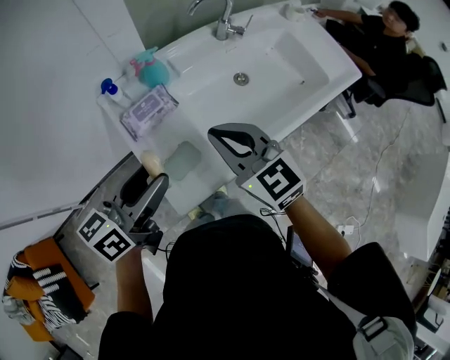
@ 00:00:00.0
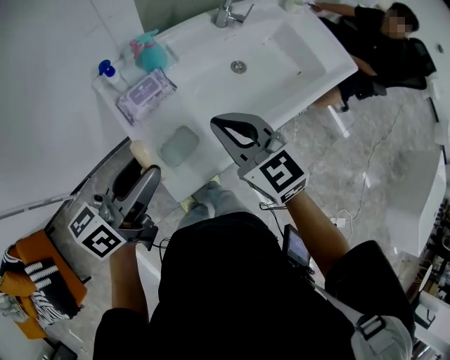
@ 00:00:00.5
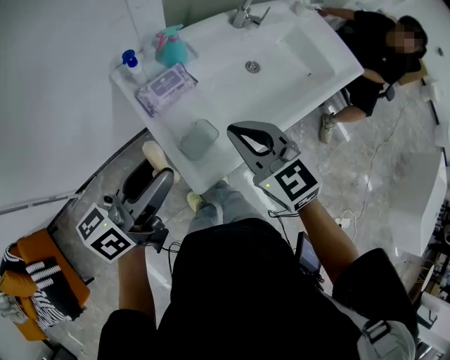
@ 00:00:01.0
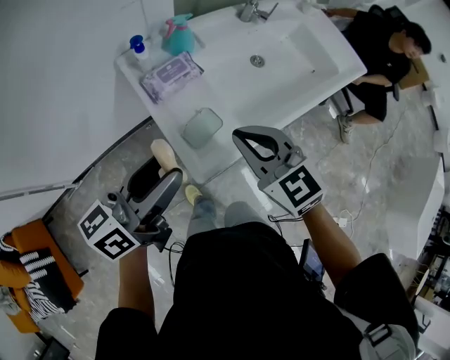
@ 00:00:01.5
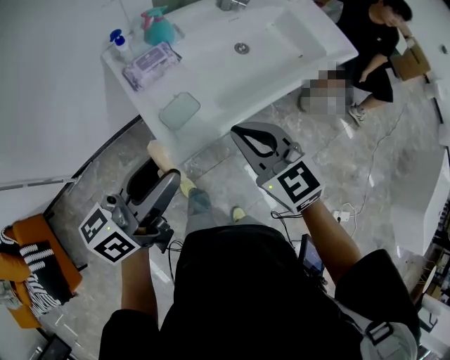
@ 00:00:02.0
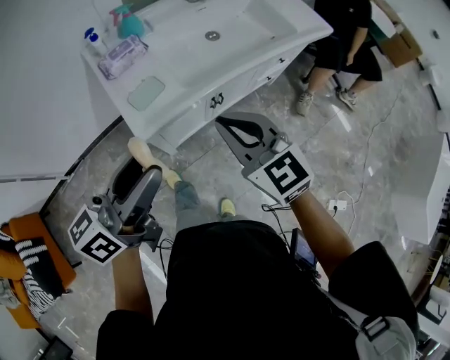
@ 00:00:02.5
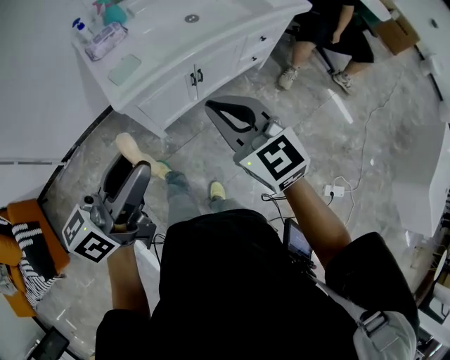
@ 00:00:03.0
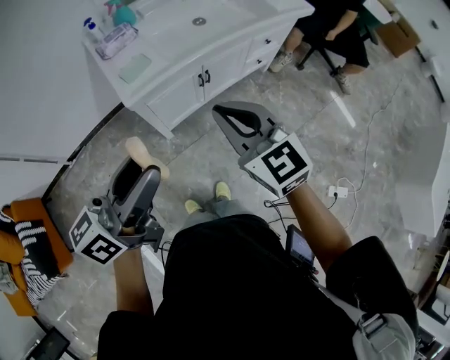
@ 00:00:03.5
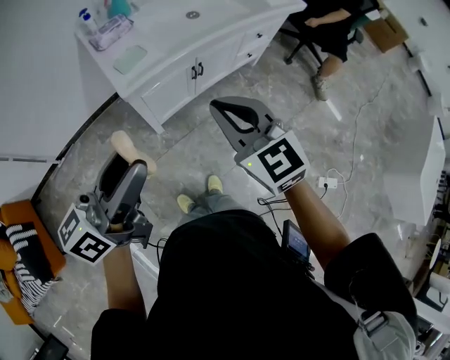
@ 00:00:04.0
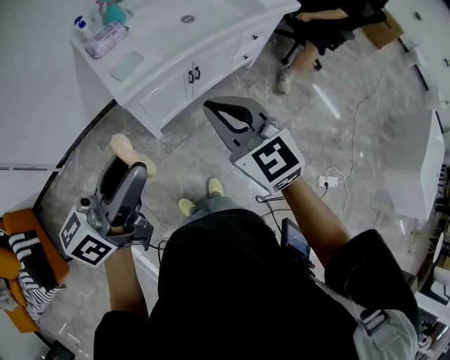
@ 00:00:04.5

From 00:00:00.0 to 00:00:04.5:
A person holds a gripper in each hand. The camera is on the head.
From 00:00:00.0 to 00:00:02.0: Both grippers travel together backward, approximately 15 cm.
From 00:00:02.0 to 00:00:04.5: Both grippers move backward and to the right, approximately 25 cm.

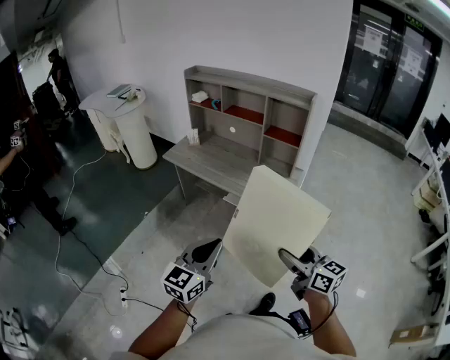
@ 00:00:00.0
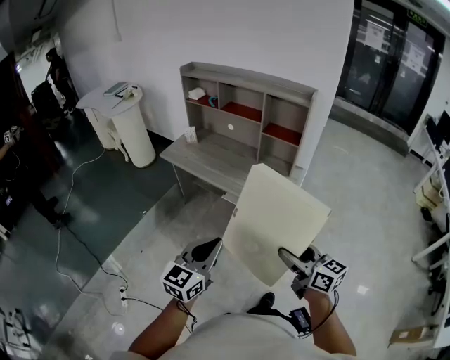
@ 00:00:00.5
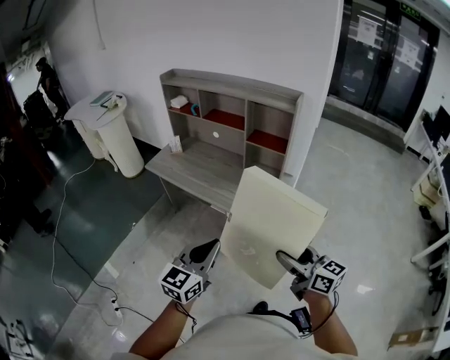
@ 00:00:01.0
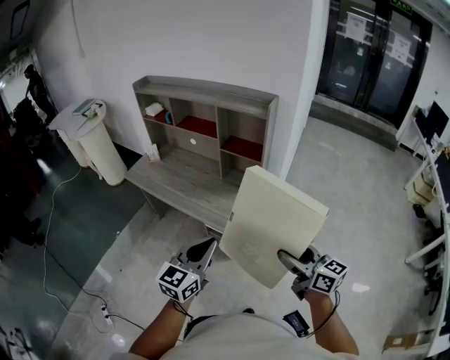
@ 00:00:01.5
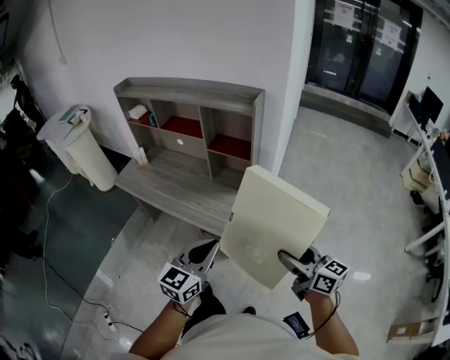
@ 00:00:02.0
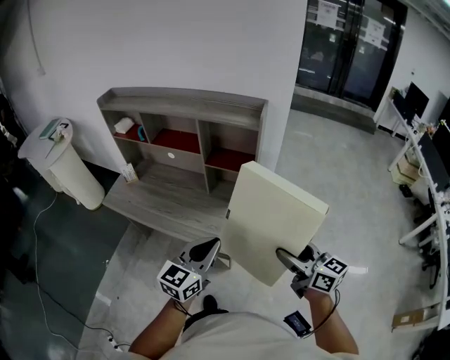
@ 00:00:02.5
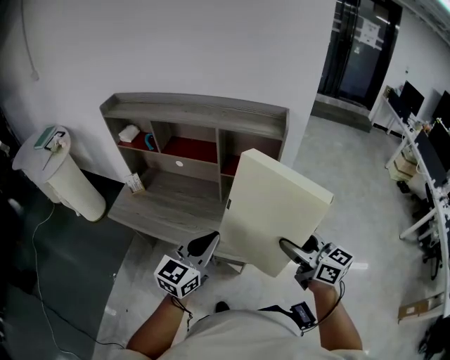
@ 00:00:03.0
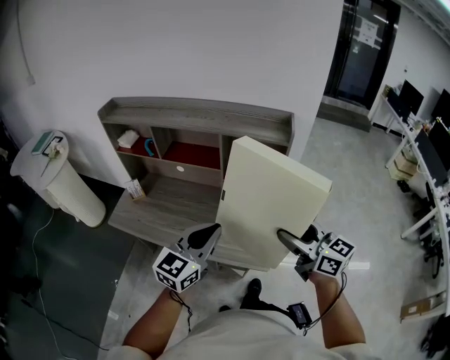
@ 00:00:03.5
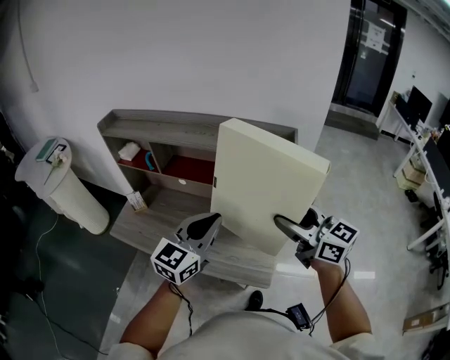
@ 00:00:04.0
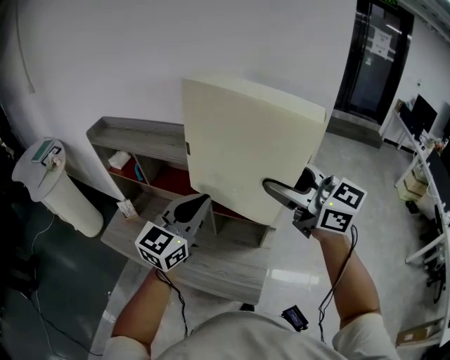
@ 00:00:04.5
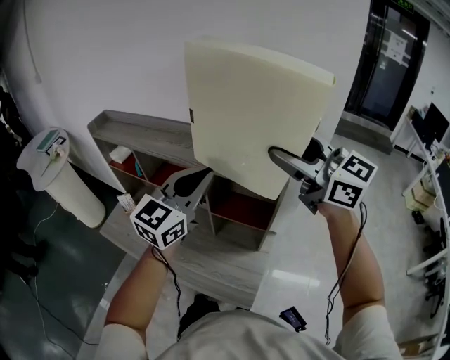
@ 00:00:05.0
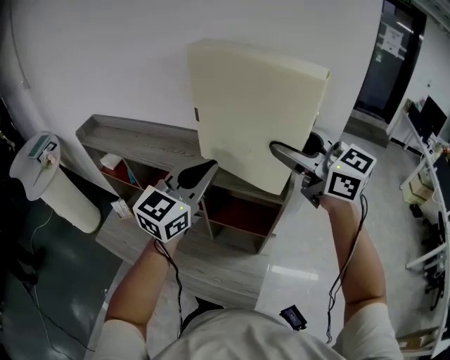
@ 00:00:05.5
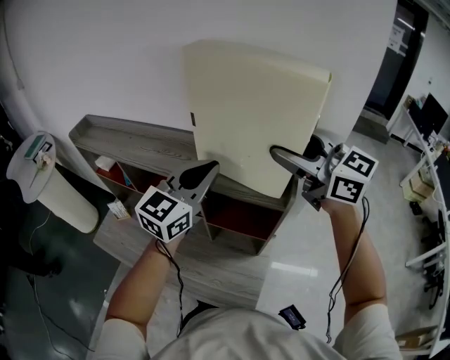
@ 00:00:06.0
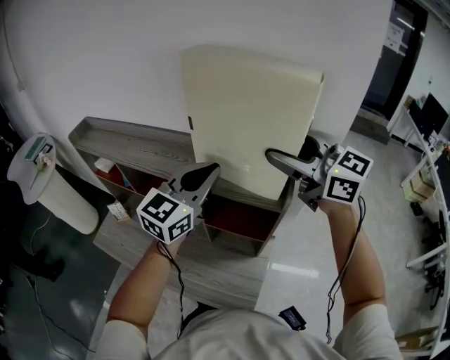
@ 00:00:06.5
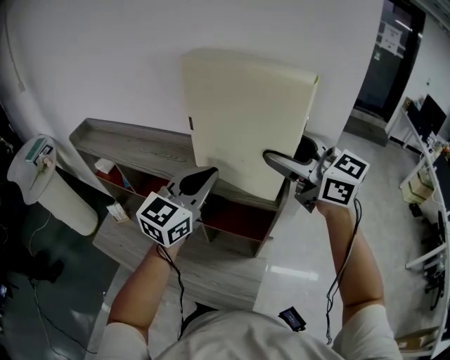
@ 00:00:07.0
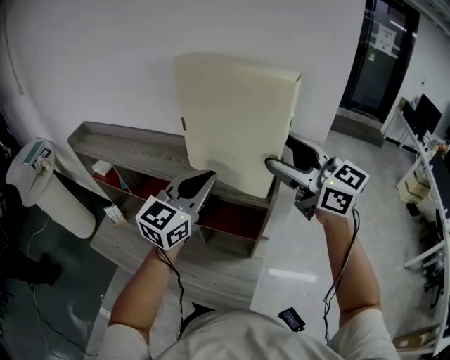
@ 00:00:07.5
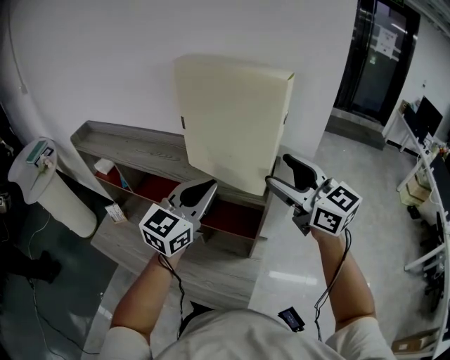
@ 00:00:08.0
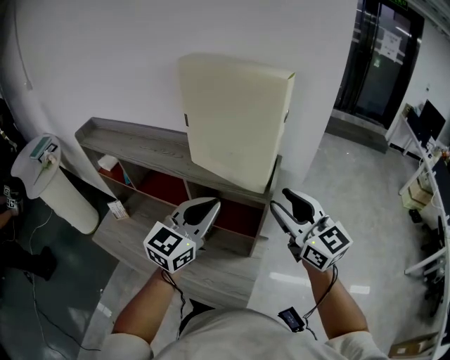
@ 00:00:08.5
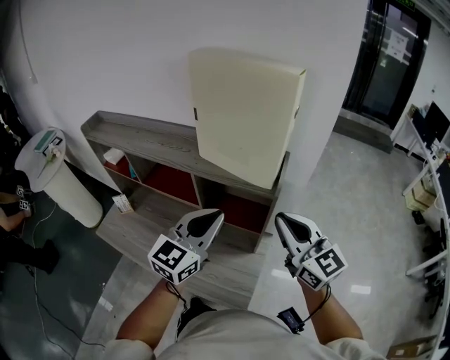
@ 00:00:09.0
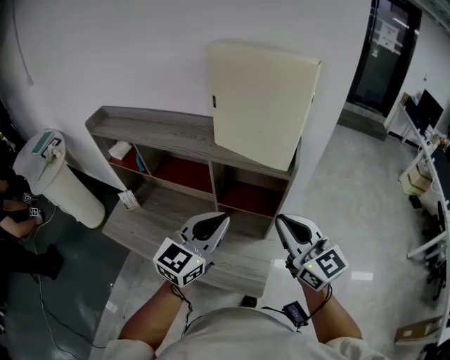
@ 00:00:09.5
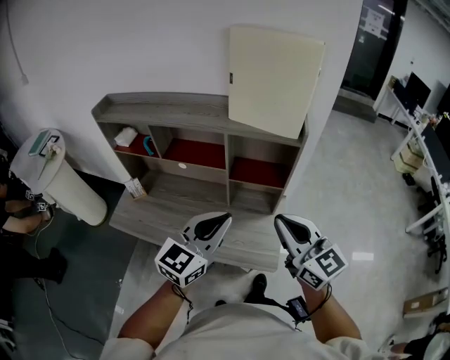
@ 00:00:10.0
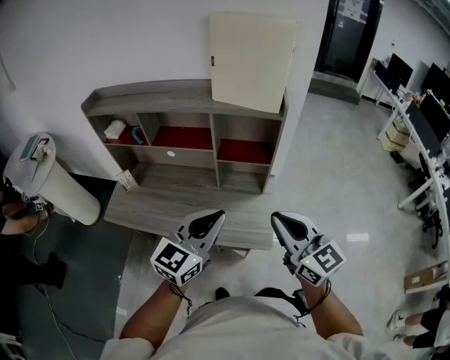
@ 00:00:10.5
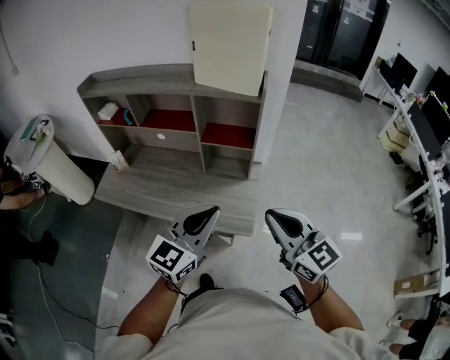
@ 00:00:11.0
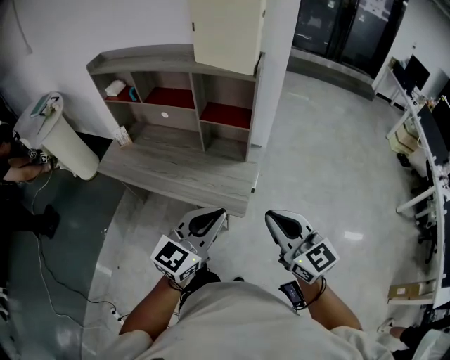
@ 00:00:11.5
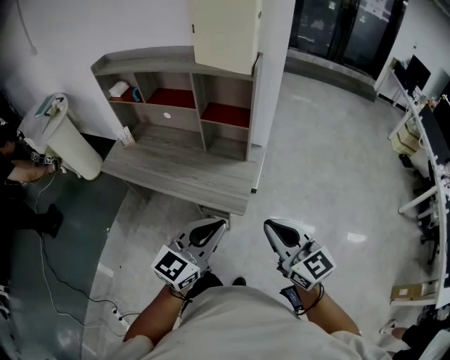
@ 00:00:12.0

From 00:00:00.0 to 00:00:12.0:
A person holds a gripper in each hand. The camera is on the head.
From 00:00:00.0 to 00:00:02.0: The grippers both shift to the right and forward by approximately 35 cm.
From 00:00:02.0 to 00:00:04.0: The right gripper moves forward, to the left and upward, approximately 35 cm. The left gripper shifts about 35 cm forward and to the left.
From 00:00:04.0 to 00:00:06.0: The right gripper shifts some 30 cm forward and upward, while the left gripper travels forward and to the right by approximately 25 cm.
From 00:00:06.0 to 00:00:08.0: The two grippers go some 5 cm backward.
From 00:00:08.0 to 00:00:10.0: The left gripper heads backward and to the left, covering roughly 25 cm. Meanwhile the right gripper shifts roughly 30 cm backward, to the left and downward, and closes.
From 00:00:10.0 to 00:00:12.0: Both grippers travel together backward and to the right, approximately 30 cm.

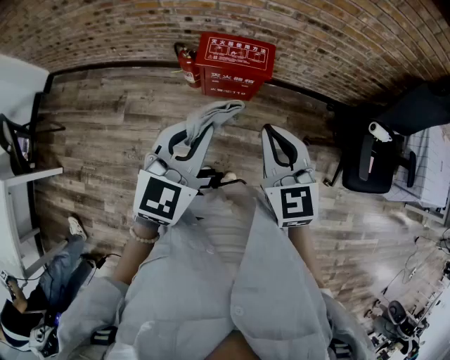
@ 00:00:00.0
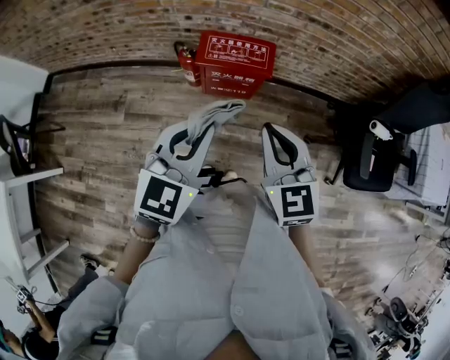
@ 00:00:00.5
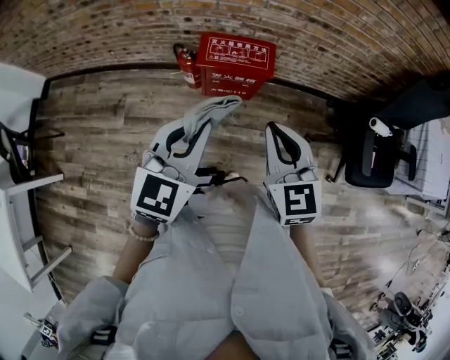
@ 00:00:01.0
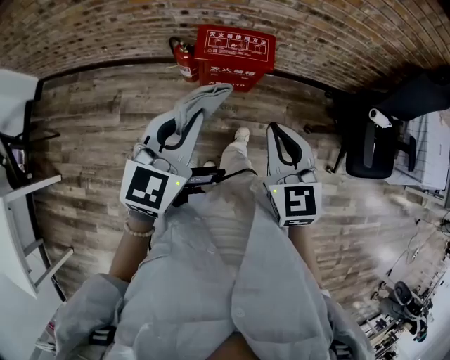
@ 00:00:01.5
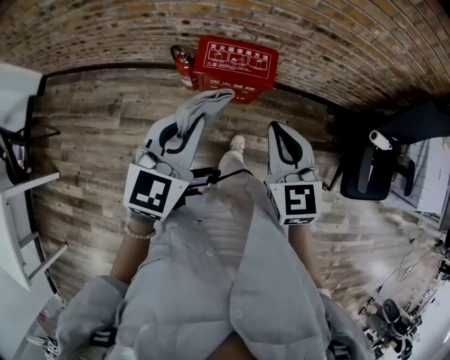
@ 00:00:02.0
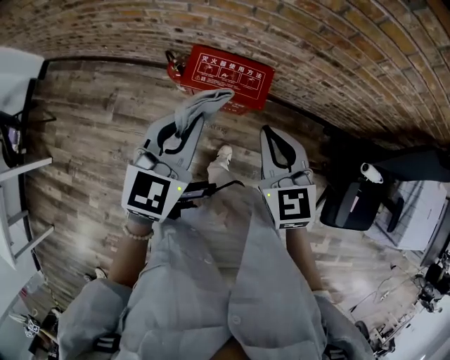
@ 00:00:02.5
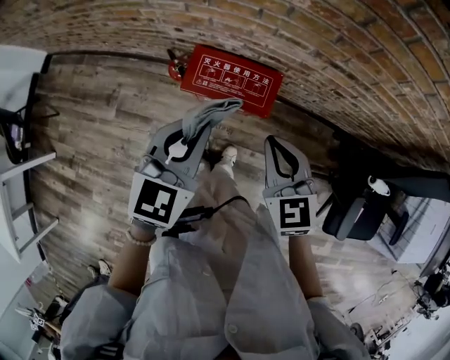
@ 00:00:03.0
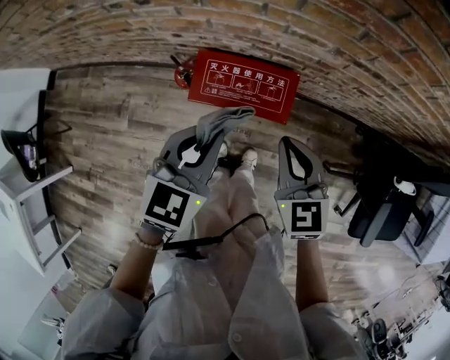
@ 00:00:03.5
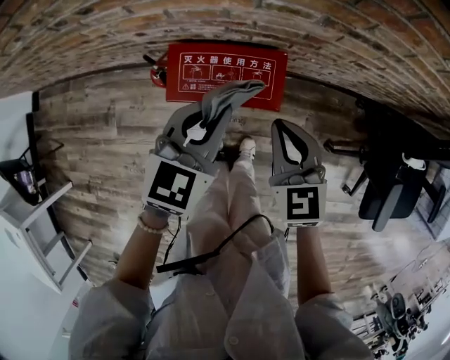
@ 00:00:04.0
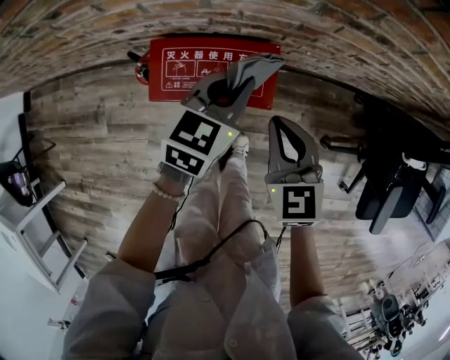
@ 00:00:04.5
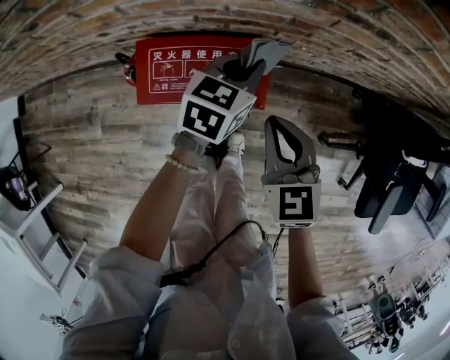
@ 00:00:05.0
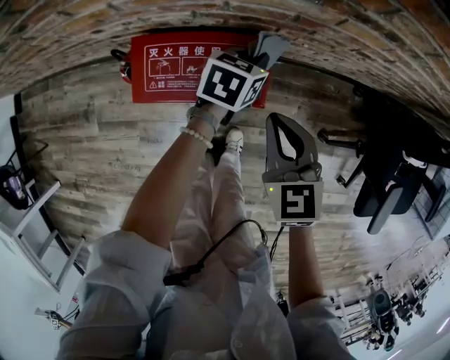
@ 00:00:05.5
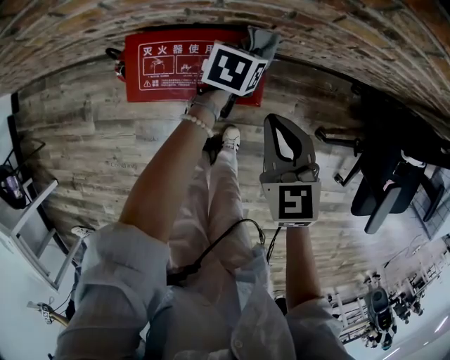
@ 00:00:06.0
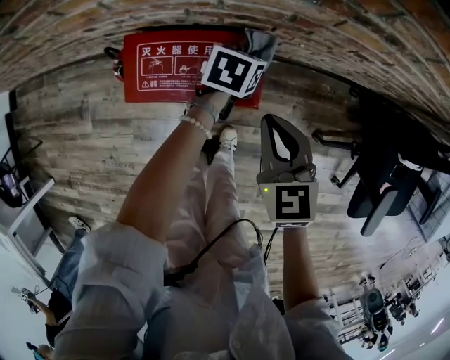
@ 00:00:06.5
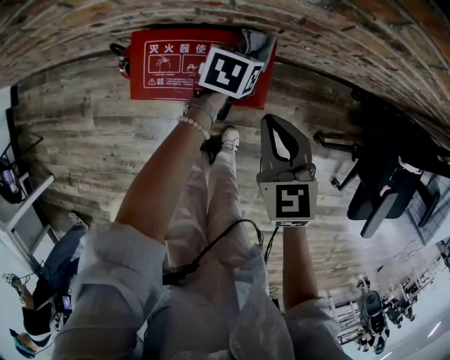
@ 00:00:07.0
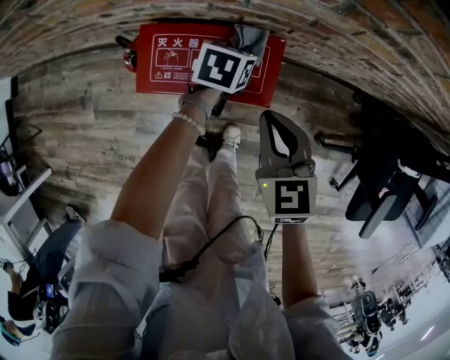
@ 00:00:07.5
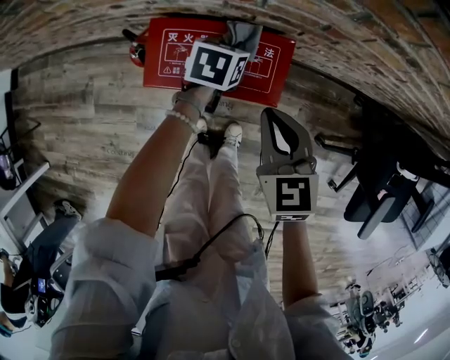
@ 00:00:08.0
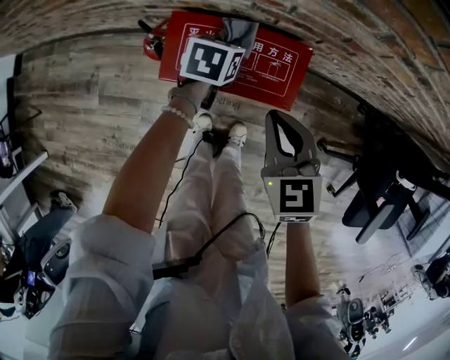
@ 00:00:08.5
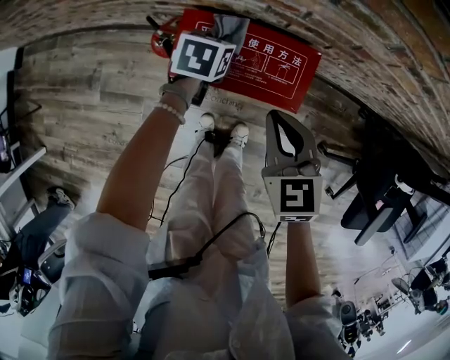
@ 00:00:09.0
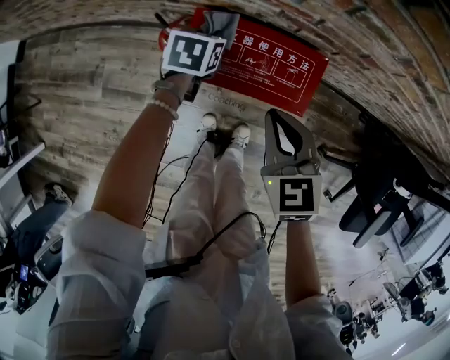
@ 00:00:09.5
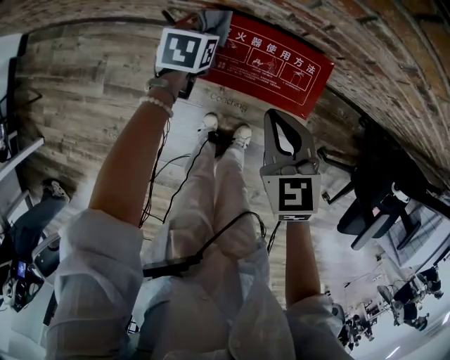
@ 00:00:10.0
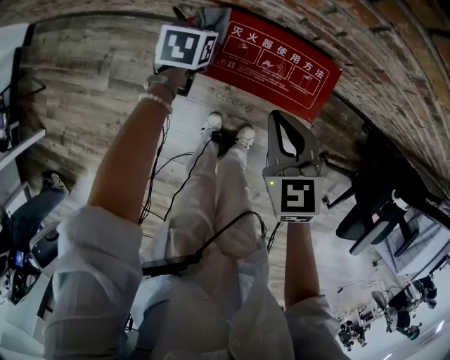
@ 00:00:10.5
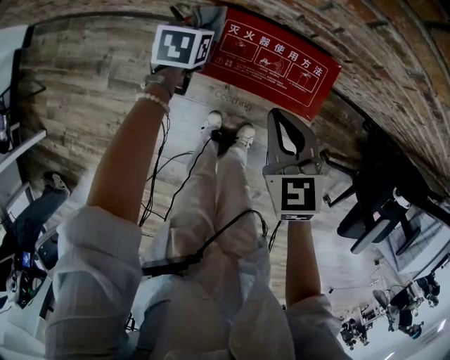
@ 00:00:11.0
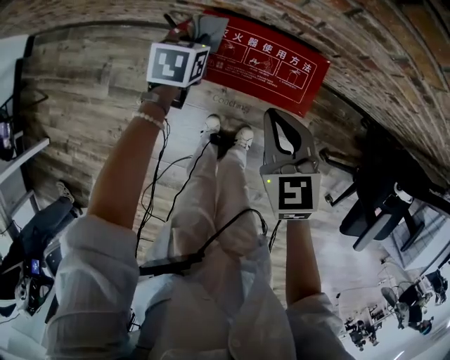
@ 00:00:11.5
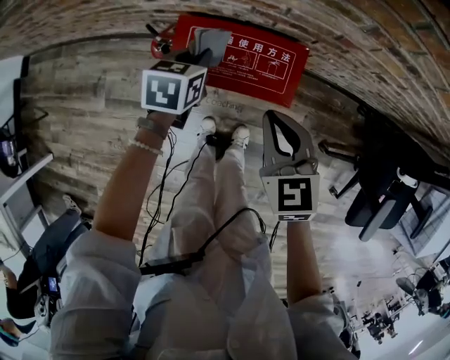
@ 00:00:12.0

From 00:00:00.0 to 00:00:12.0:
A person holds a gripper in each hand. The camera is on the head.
From 00:00:00.0 to 00:00:02.0: The two grippers go some 10 cm forward.
From 00:00:02.0 to 00:00:04.0: The right gripper shifts about 30 cm forward and downward; the left gripper is displaced forward, downward and to the right by approximately 35 cm.
From 00:00:04.0 to 00:00:06.0: The right gripper moves downward, roughly 10 cm, while the left gripper goes approximately 30 cm downward, forward and to the right, and rotates approximately 30 degrees.
From 00:00:06.0 to 00:00:08.0: The left gripper goes roughly 10 cm to the left, while the right gripper shifts some 5 cm to the left.
From 00:00:08.0 to 00:00:10.0: The right gripper moves to the left, roughly 10 cm; the left gripper goes roughly 20 cm to the left.
From 00:00:10.0 to 00:00:12.0: The left gripper shifts some 10 cm to the right, upward and backward. Meanwhile the right gripper shifts roughly 5 cm to the right.
